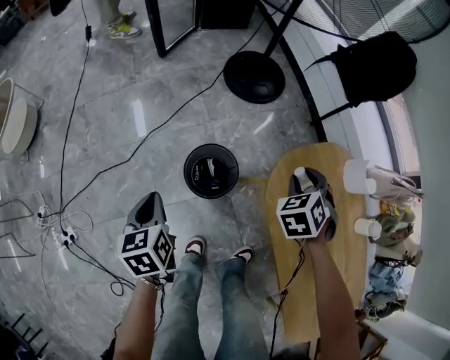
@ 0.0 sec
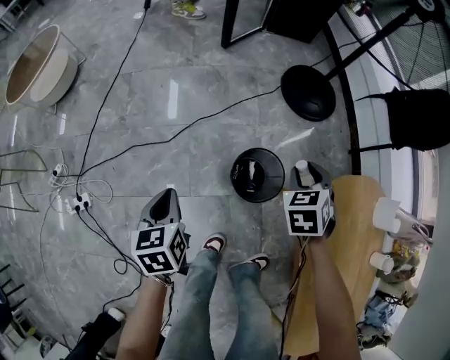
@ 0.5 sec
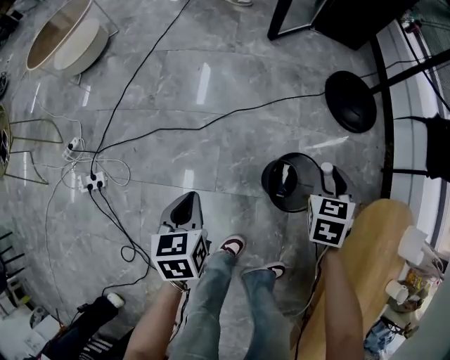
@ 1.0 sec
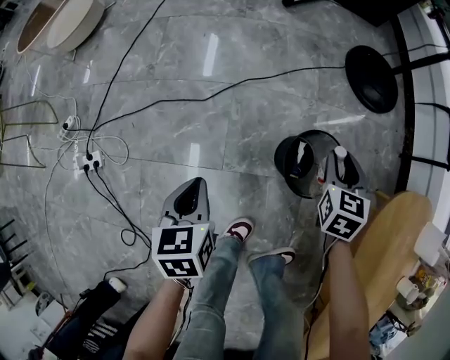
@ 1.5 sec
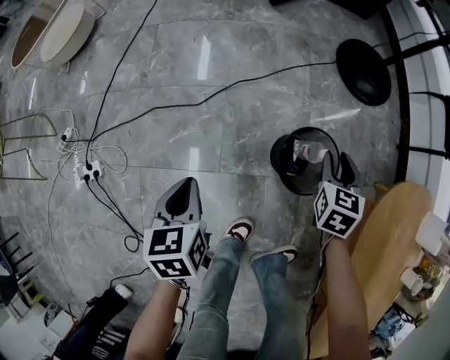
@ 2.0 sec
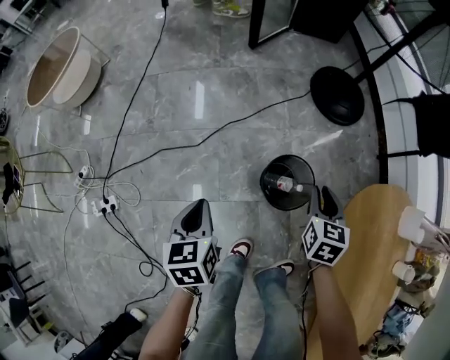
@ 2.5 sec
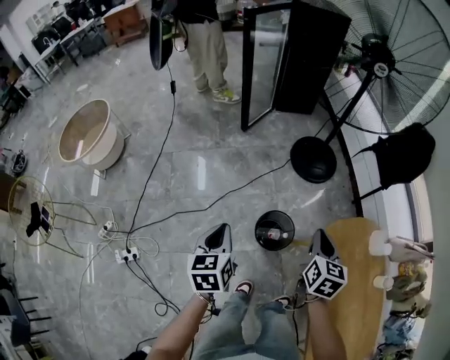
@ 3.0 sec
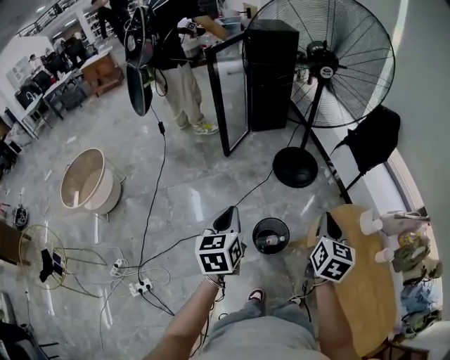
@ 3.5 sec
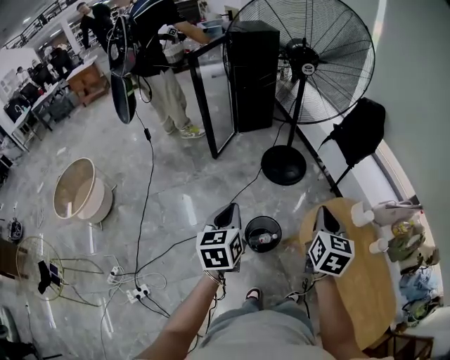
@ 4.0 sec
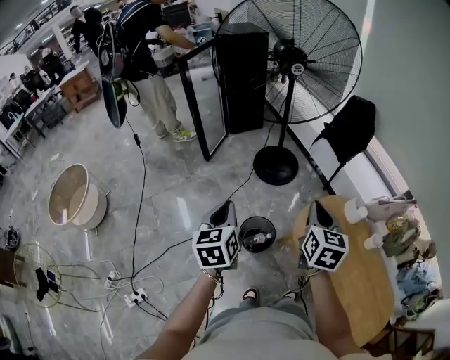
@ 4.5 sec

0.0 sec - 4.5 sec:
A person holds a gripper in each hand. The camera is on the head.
0.0 sec - 2.0 sec: Both grippers travel together to the left and downward, some 25 cm. The right gripper changes its angle by roughly 30 degrees.
2.0 sec - 4.5 sec: Both grippers travel together upward, roughly 50 cm. The right gripper changes its angle by about 40 degrees, and closes, while the left gripper changes its angle by some 40 degrees.

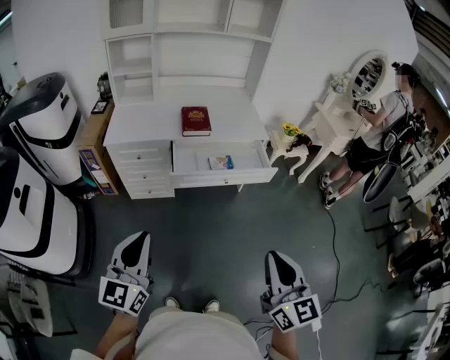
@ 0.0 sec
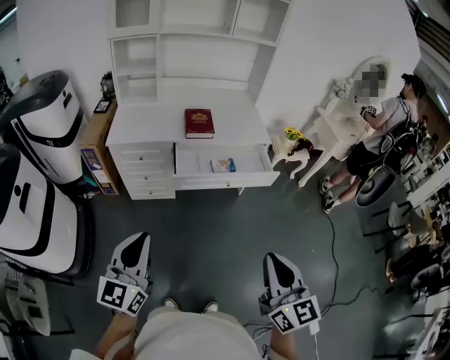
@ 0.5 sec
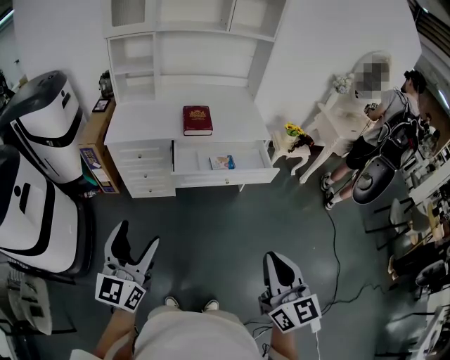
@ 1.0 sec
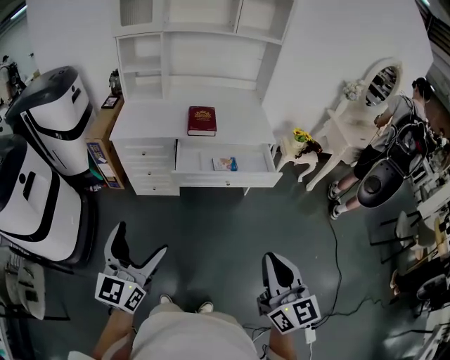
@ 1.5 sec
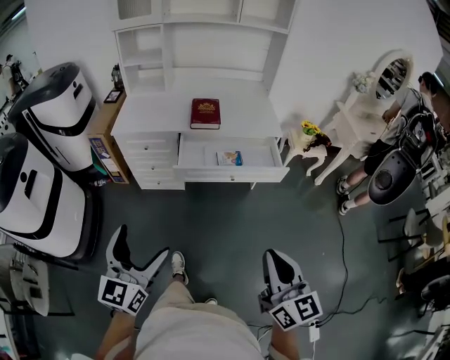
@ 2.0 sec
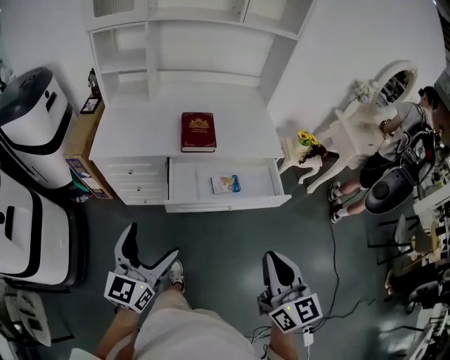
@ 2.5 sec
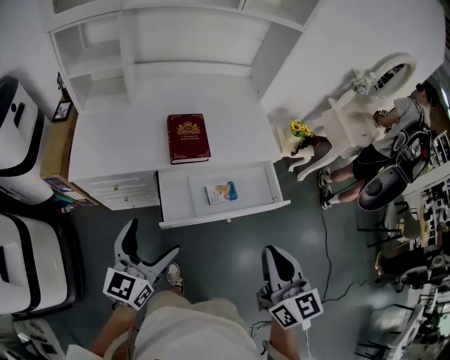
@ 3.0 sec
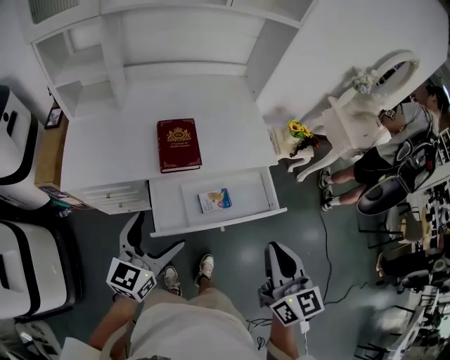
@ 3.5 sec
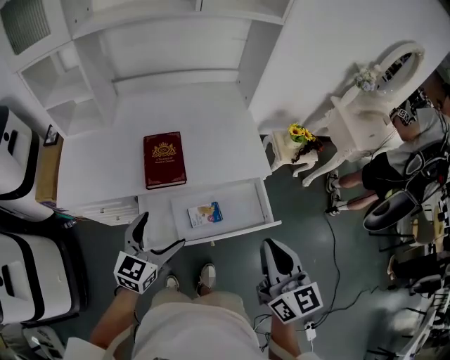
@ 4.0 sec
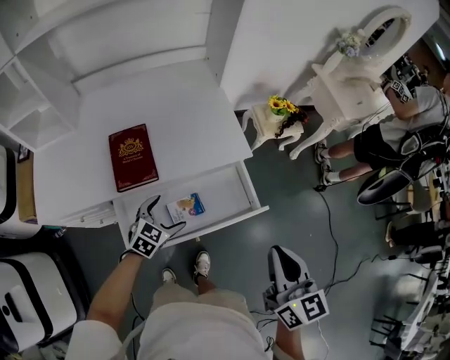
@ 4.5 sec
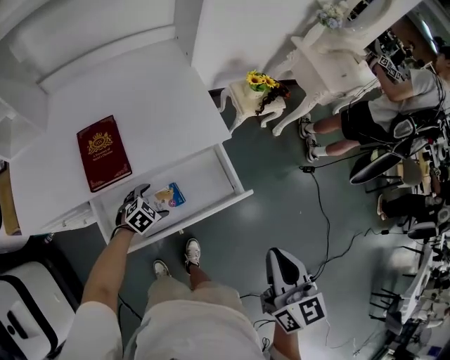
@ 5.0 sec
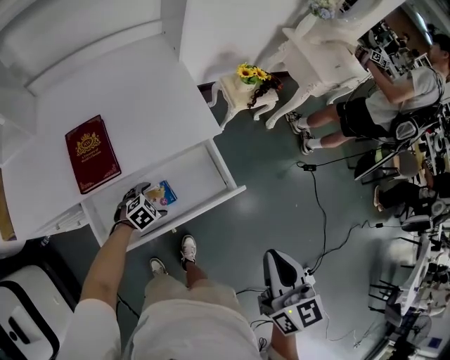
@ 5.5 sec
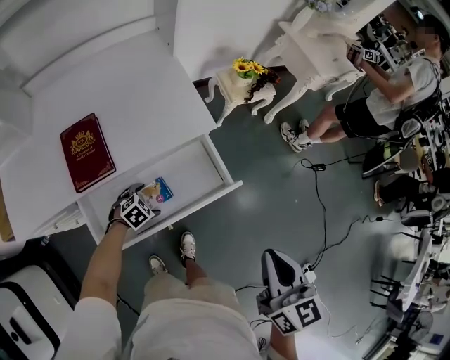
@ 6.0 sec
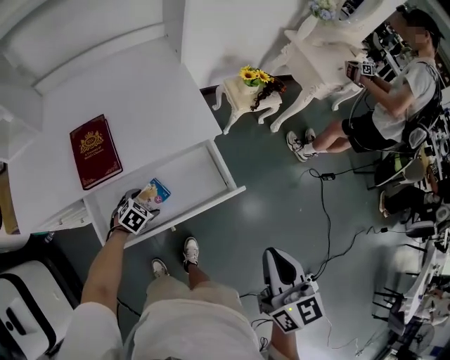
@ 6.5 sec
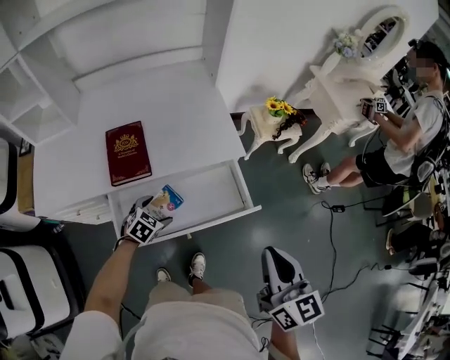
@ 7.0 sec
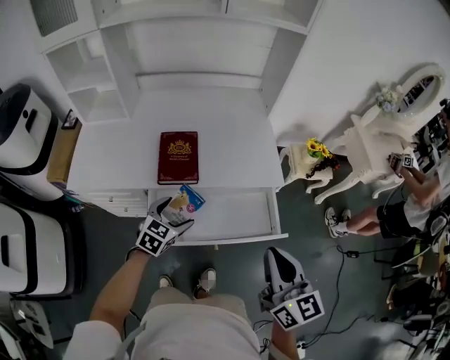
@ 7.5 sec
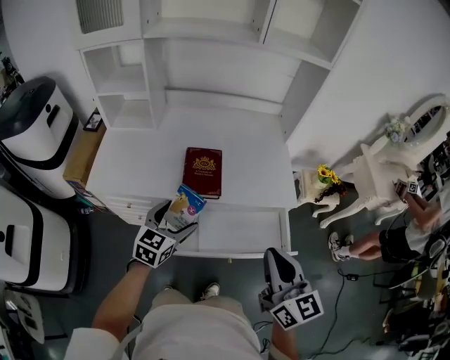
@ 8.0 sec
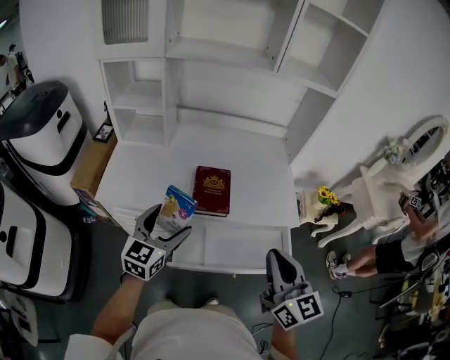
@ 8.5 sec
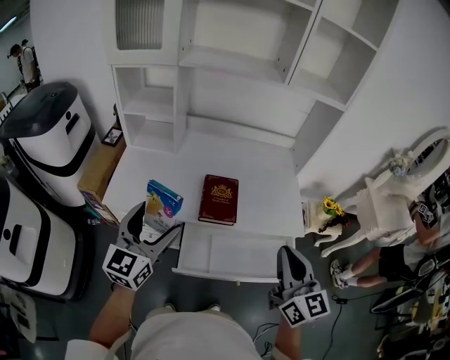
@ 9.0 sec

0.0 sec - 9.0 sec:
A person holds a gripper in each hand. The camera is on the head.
0.0 sec - 2.0 sec: Both grippers travel together to the right, about 5 cm. The left gripper opens up.
2.0 sec - 4.5 sec: The two grippers travel together, approximately 50 cm. The right gripper turns by about 20 degrees. Meanwhile the left gripper angles its fingers downward, by roughly 40 degrees.
4.5 sec - 7.0 sec: The left gripper shifts roughly 5 cm downward.
7.0 sec - 9.0 sec: The left gripper heads upward, covering about 40 cm, and tips its fingers upward by some 60 degrees, while the right gripper ends up about 25 cm from where it was, and swivels about 20 degrees.

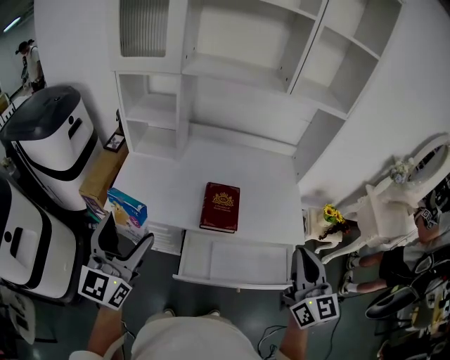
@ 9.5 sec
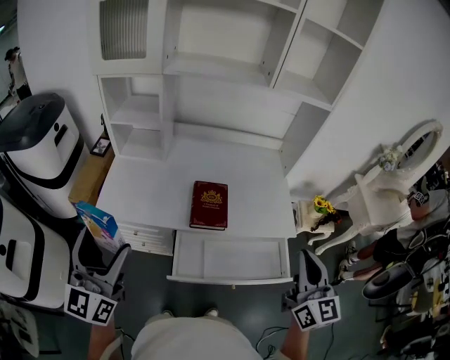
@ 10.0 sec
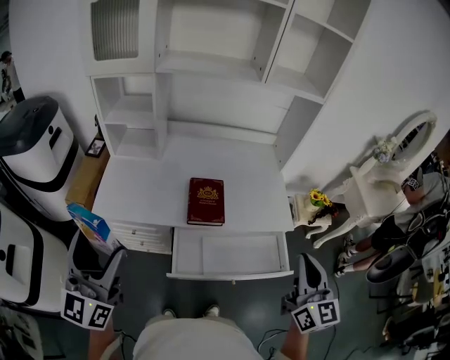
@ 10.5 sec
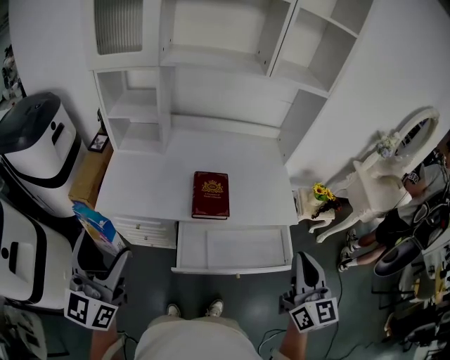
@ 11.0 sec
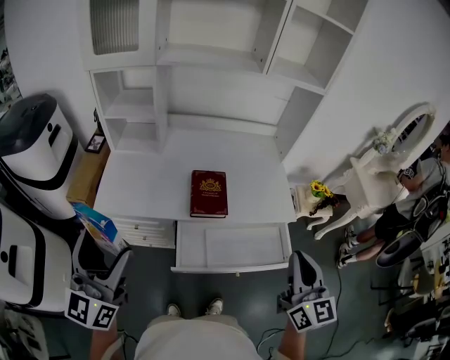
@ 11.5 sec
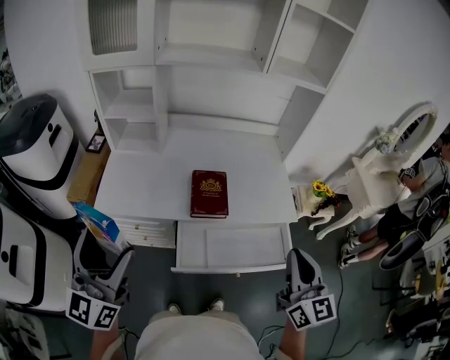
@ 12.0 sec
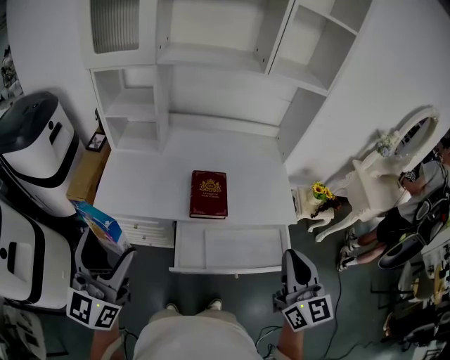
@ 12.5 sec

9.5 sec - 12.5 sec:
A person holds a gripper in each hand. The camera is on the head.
9.5 sec - 11.0 sec: Both grippers travel together backward, some 5 cm.
11.0 sec - 12.5 sec: The grippers make only small movements.

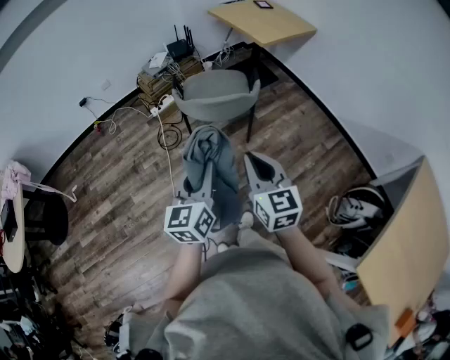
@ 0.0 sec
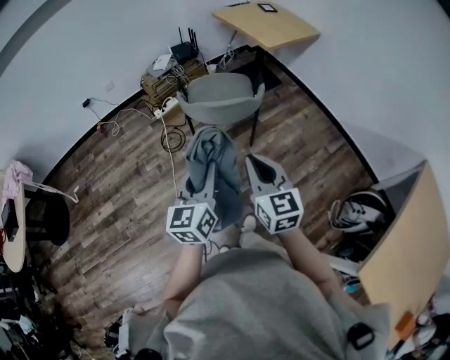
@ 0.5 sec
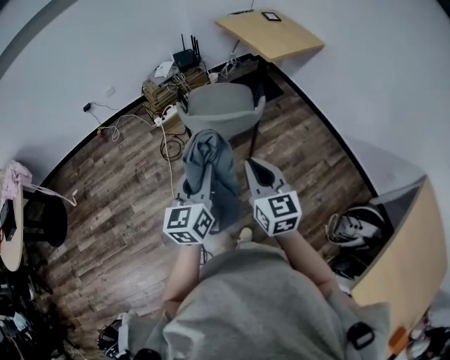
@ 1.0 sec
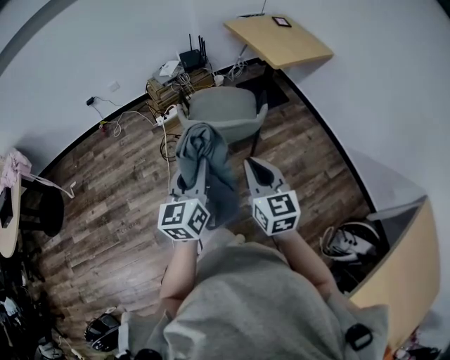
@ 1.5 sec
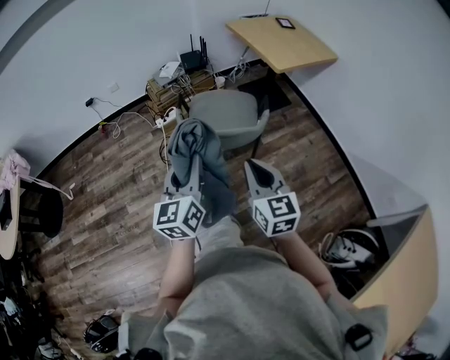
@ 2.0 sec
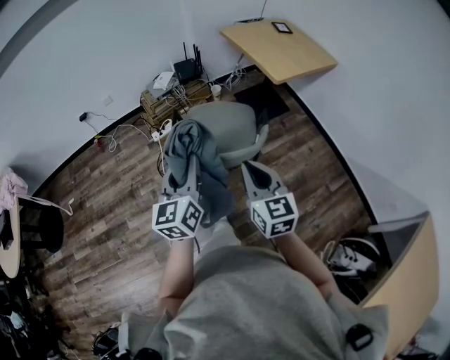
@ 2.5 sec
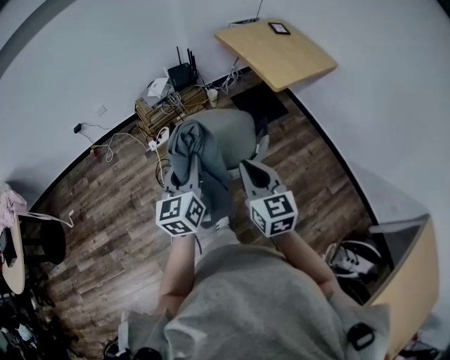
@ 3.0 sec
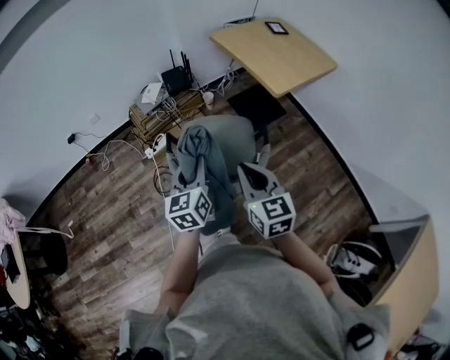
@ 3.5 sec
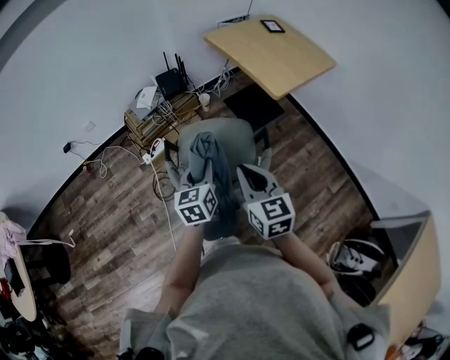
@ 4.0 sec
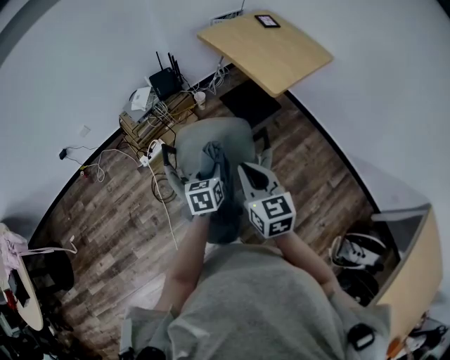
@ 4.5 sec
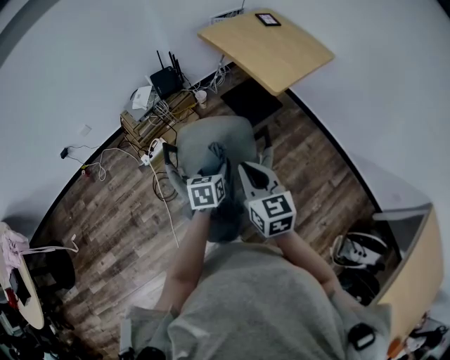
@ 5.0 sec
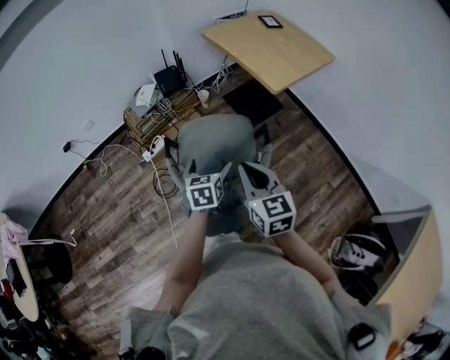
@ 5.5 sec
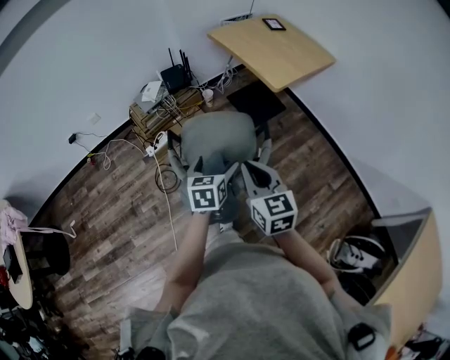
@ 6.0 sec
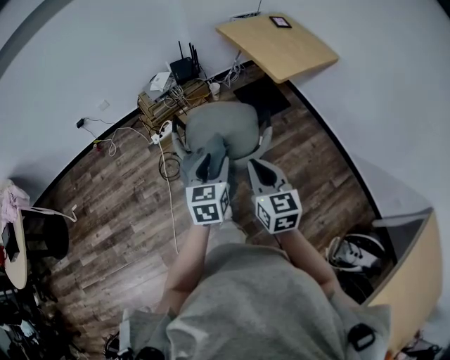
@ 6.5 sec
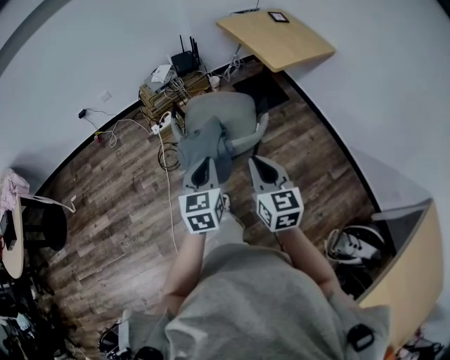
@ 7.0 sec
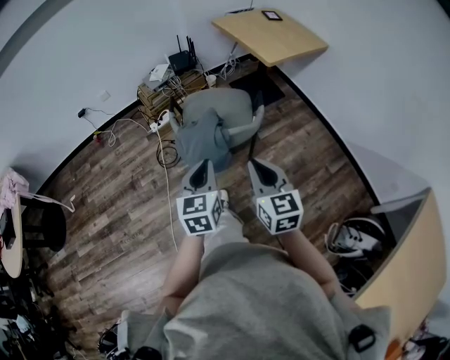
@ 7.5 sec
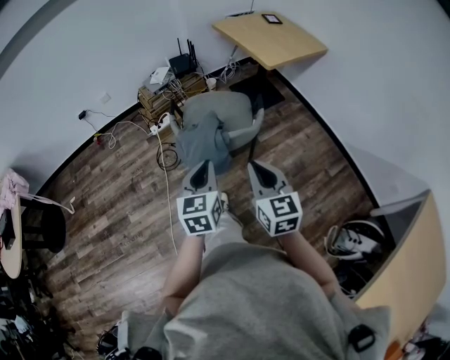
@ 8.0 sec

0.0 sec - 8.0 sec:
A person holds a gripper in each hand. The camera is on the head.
0.0 sec - 2.0 sec: The grippers both shift forward by about 15 cm.
2.0 sec - 4.0 sec: The right gripper is displaced forward by about 25 cm. The left gripper heads forward and downward, covering about 30 cm, and swivels approximately 20 degrees.
4.0 sec - 6.0 sec: The right gripper ends up roughly 5 cm from where it was. Meanwhile the left gripper heads backward and to the right, covering approximately 5 cm, goes downward and returns, about 10 cm each way, and opens.
6.0 sec - 8.0 sec: The grippers both shift backward by about 20 cm. The left gripper closes up.

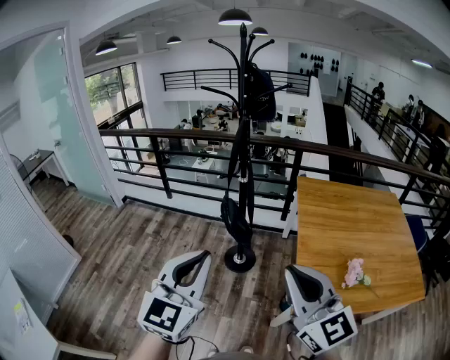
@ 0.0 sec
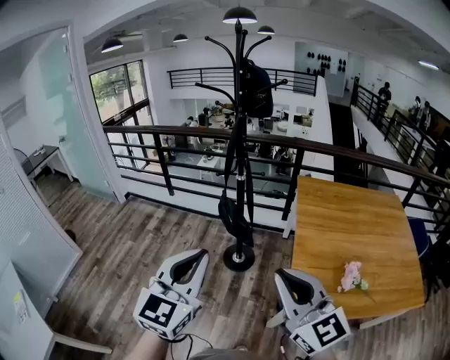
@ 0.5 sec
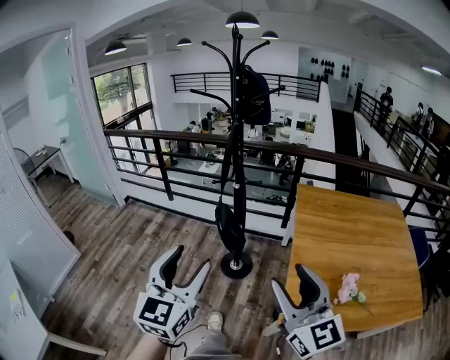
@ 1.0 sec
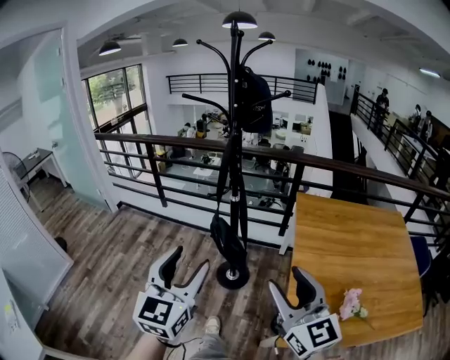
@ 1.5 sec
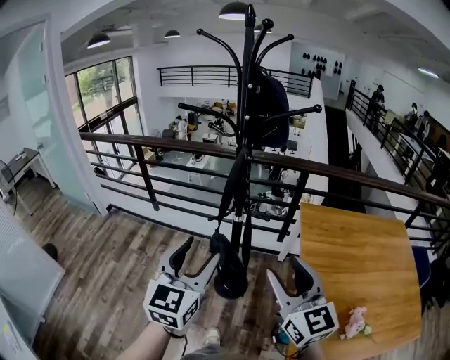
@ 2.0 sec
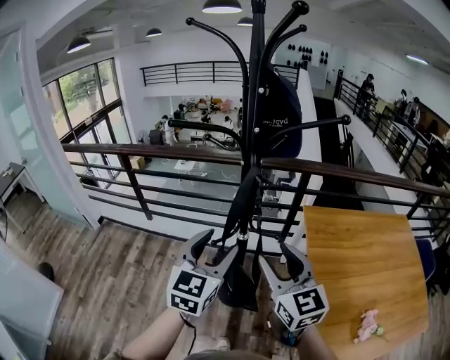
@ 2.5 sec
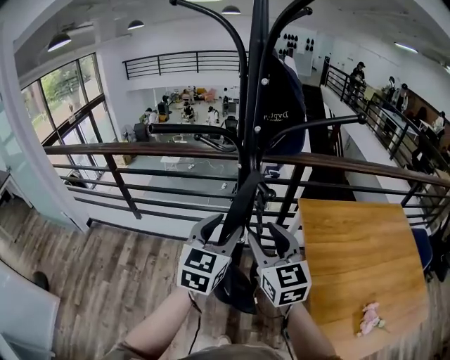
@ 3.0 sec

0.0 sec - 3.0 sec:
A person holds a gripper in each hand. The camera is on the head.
0.0 sec - 1.5 sec: The left gripper travels forward by some 15 cm, and opens up; the right gripper is displaced forward and to the right by approximately 15 cm, and opens.
1.5 sec - 3.0 sec: The two grippers go roughly 40 cm forward. The left gripper changes its angle by approximately 20 degrees.
